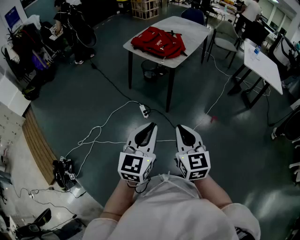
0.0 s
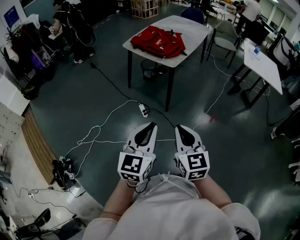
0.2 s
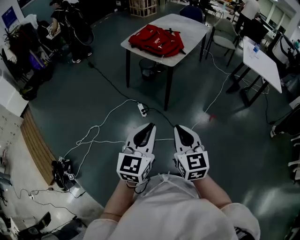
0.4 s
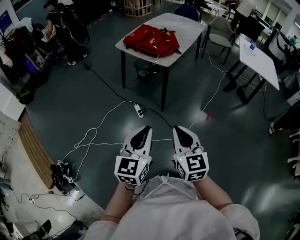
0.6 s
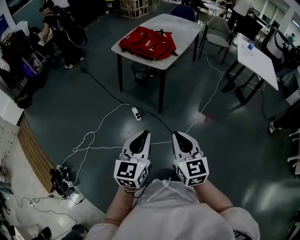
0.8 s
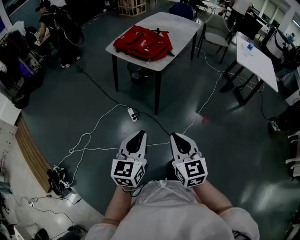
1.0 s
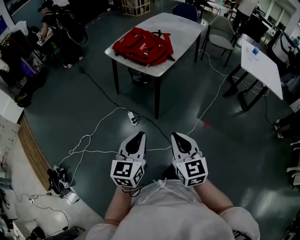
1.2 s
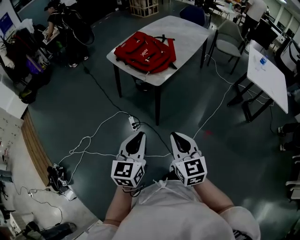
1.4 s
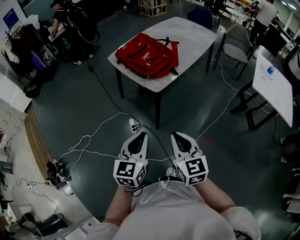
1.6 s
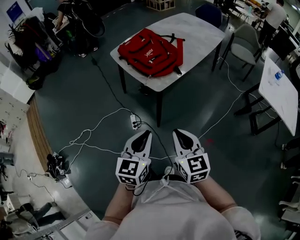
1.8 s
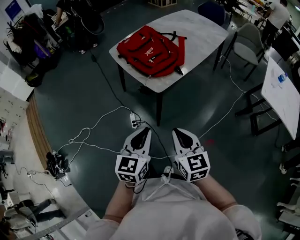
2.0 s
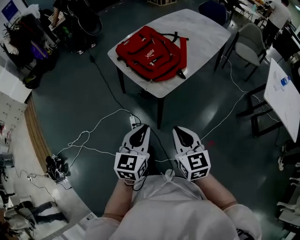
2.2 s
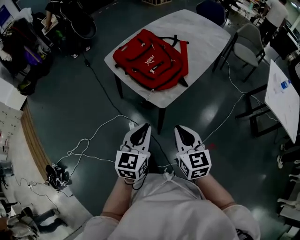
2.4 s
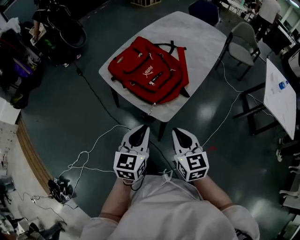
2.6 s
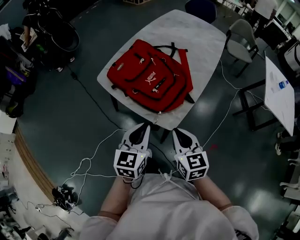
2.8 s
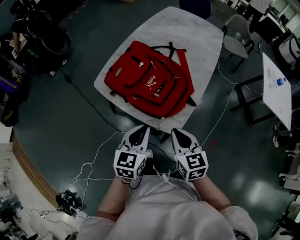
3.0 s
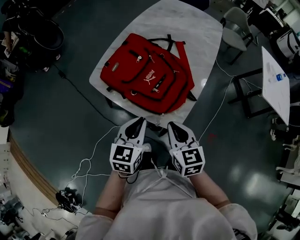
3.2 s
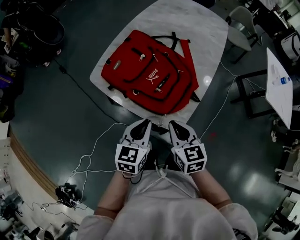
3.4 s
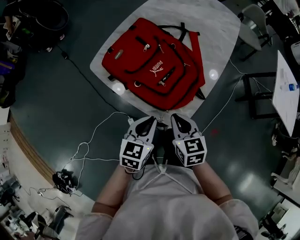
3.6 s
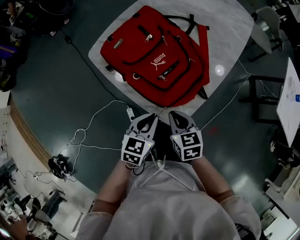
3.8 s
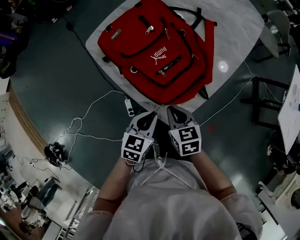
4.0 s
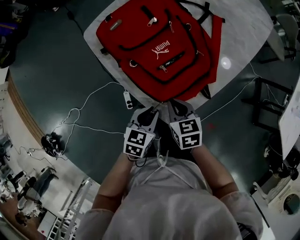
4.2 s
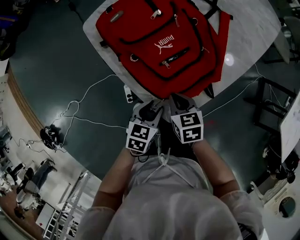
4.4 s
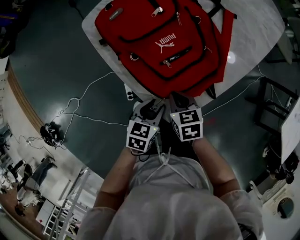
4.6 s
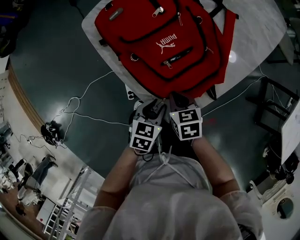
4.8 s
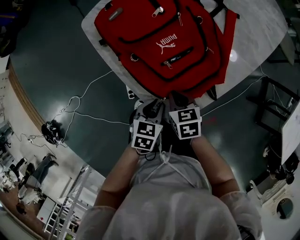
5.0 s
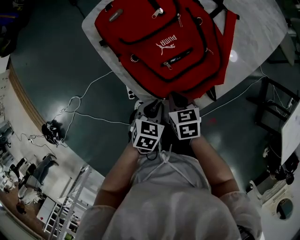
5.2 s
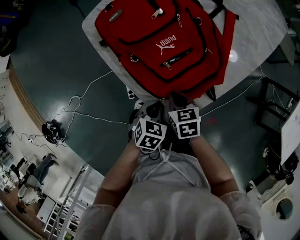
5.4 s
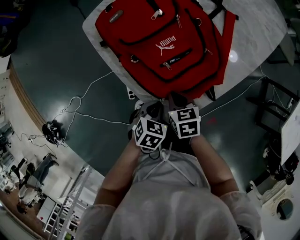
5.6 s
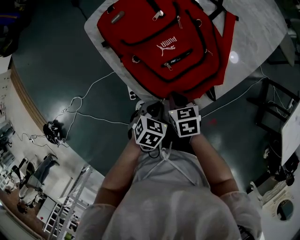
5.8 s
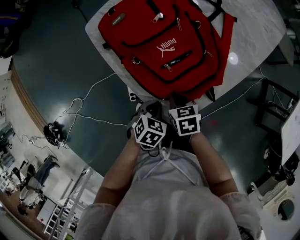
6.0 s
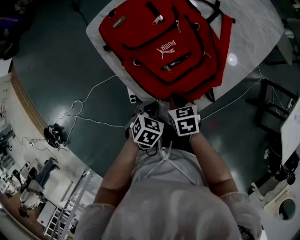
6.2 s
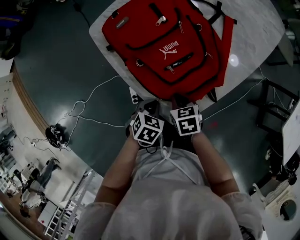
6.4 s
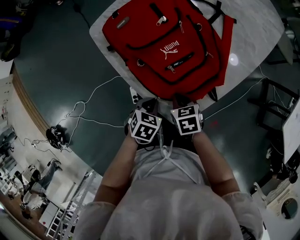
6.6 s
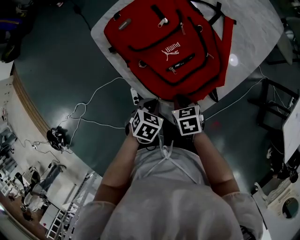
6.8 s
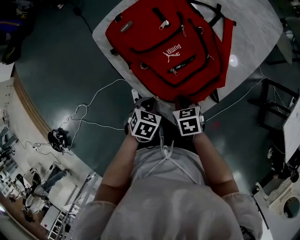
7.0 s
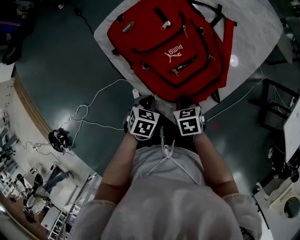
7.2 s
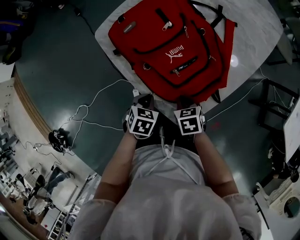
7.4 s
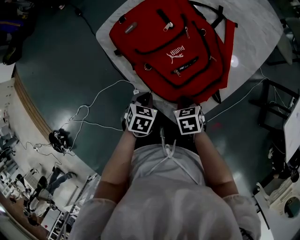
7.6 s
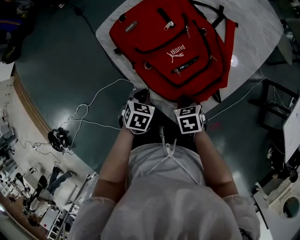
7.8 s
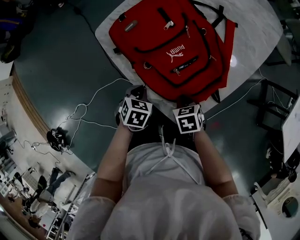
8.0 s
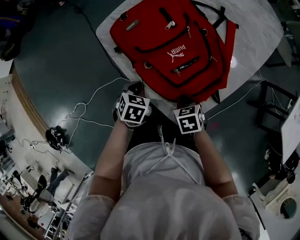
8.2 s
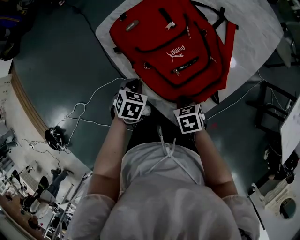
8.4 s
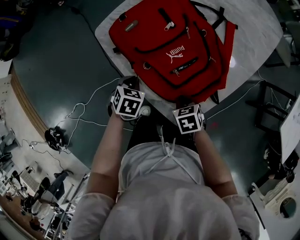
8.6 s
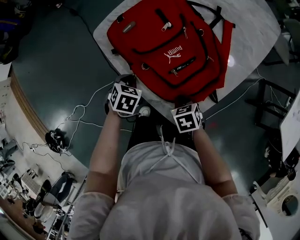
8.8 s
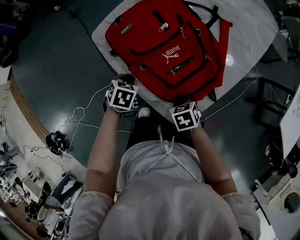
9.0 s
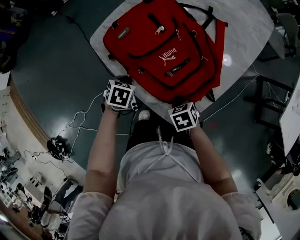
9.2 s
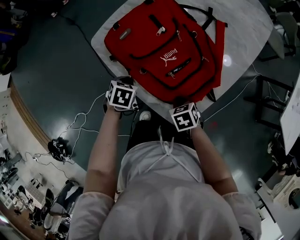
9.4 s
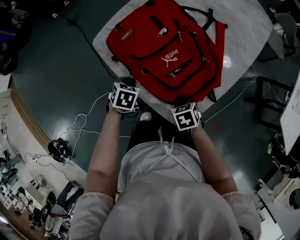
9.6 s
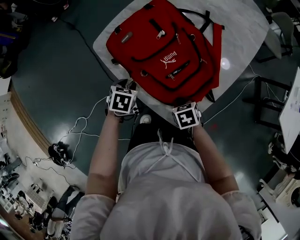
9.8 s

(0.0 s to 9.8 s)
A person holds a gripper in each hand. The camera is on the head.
0.0 s - 1.4 s: The grippers both shift forward and to the right by about 25 cm.
1.4 s - 2.8 s: The two grippers go roughly 40 cm forward.
2.8 s - 4.2 s: The right gripper shifts roughly 20 cm downward and forward, and changes its angle by approximately 30 degrees; the left gripper goes about 20 cm downward, and rotates approximately 30 degrees.
4.2 s - 5.6 s: The right gripper moves downward, roughly 5 cm, while the left gripper moves about 5 cm, turns by about 20 degrees, and opens, then closes again.
5.6 s - 7.0 s: The left gripper moves to the left, approximately 5 cm.
7.0 s - 8.4 s: The left gripper moves forward and to the left, approximately 10 cm.
8.4 s - 9.8 s: The left gripper opens its fingers.

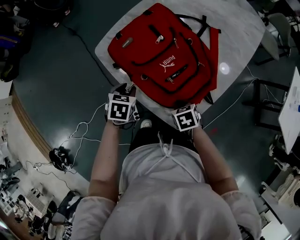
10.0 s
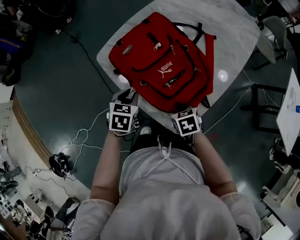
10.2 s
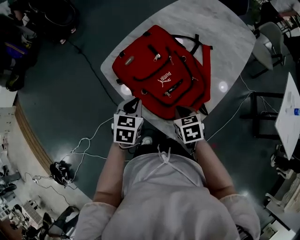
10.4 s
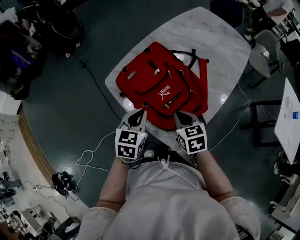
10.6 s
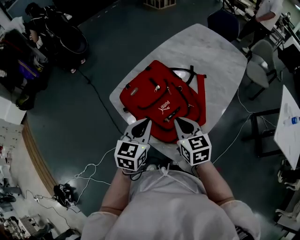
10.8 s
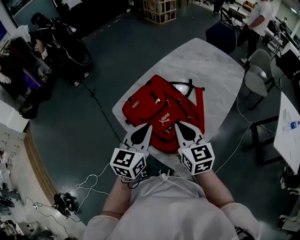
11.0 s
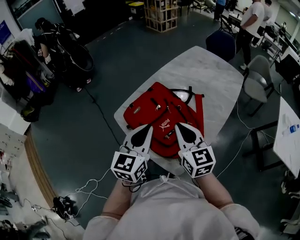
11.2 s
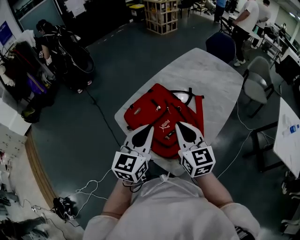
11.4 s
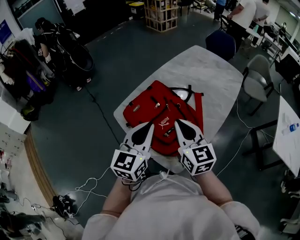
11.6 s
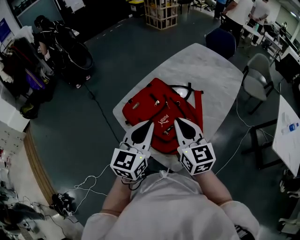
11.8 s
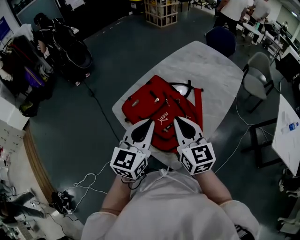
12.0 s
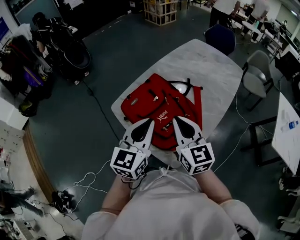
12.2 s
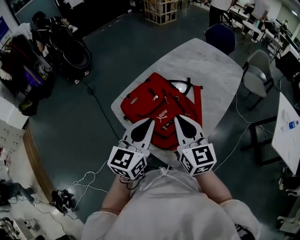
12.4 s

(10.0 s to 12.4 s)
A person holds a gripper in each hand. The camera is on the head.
10.0 s - 11.2 s: Both grippers travel together upward, approximately 35 cm. The left gripper angles its fingers upward, by some 50 degrees, and closes up. Meanwhile the right gripper angles its fingers upward, by roughly 60 degrees.
11.2 s - 12.4 s: There are only small adjustments of the grippers.

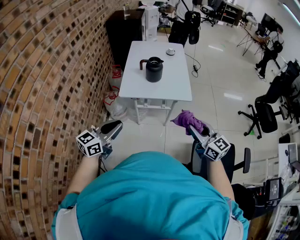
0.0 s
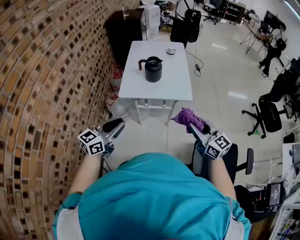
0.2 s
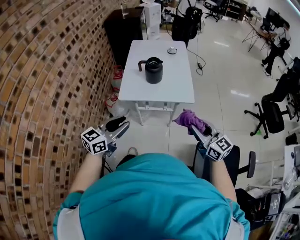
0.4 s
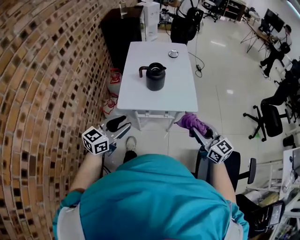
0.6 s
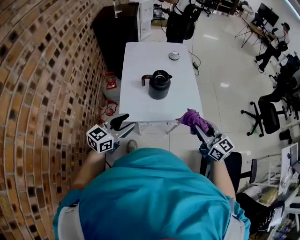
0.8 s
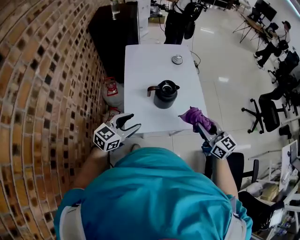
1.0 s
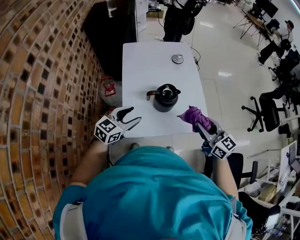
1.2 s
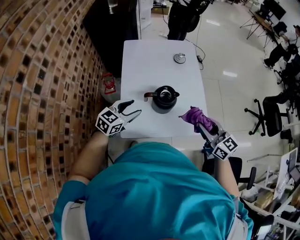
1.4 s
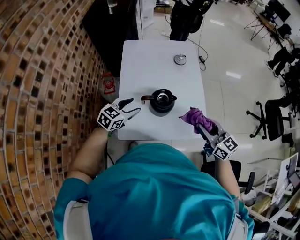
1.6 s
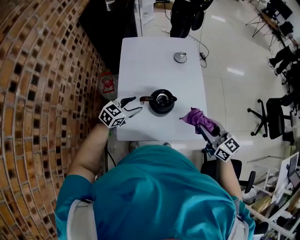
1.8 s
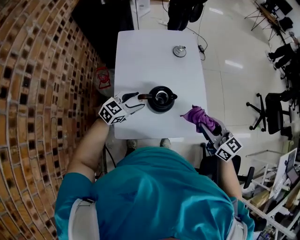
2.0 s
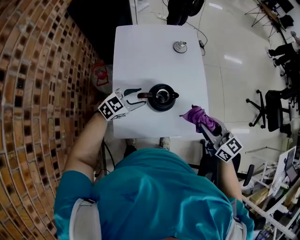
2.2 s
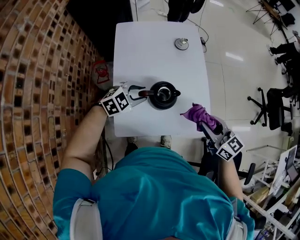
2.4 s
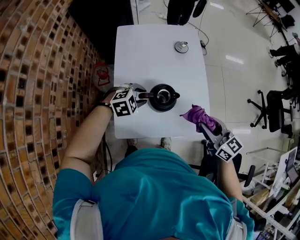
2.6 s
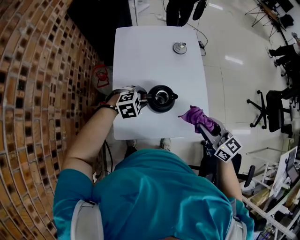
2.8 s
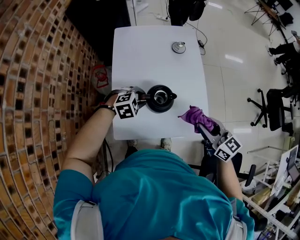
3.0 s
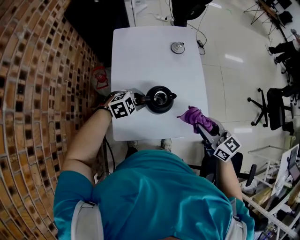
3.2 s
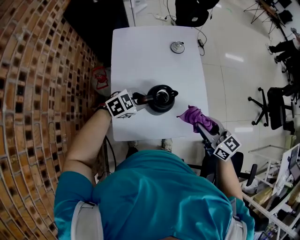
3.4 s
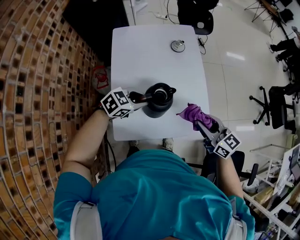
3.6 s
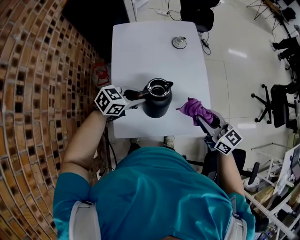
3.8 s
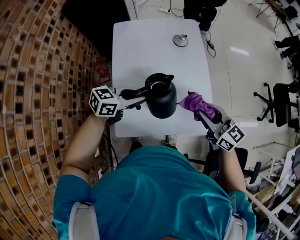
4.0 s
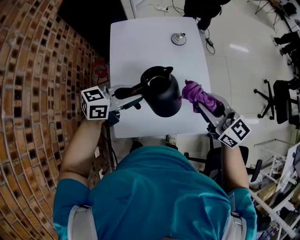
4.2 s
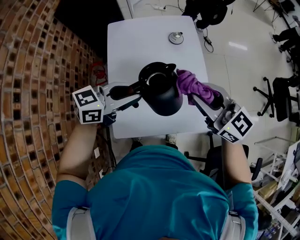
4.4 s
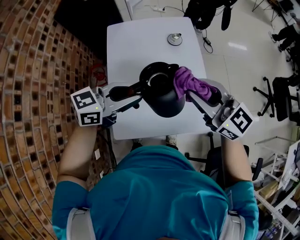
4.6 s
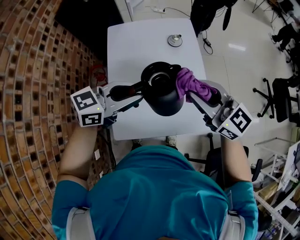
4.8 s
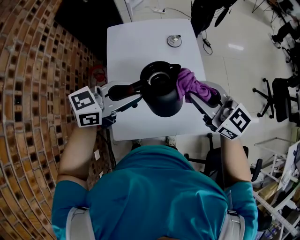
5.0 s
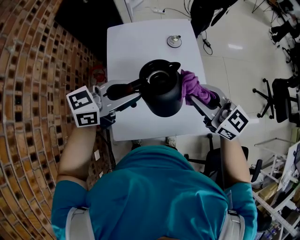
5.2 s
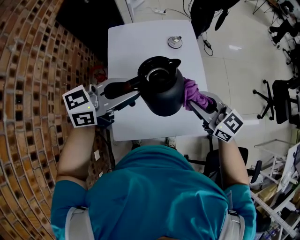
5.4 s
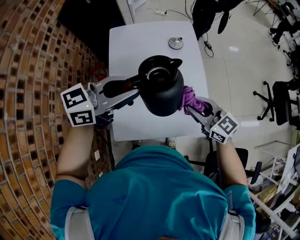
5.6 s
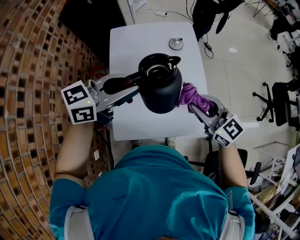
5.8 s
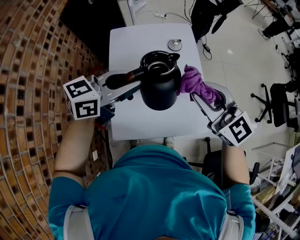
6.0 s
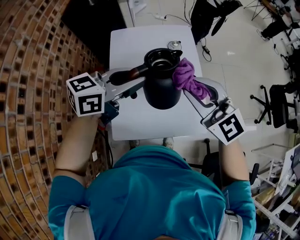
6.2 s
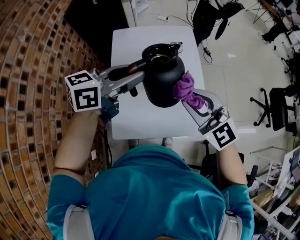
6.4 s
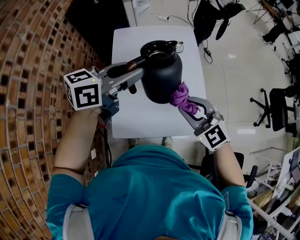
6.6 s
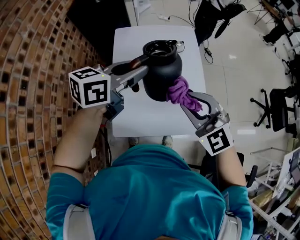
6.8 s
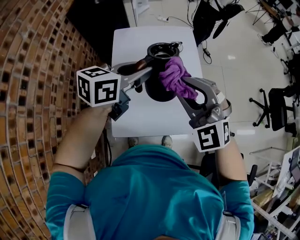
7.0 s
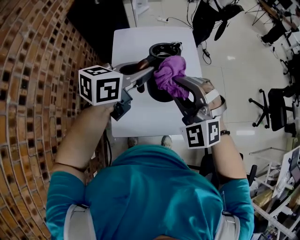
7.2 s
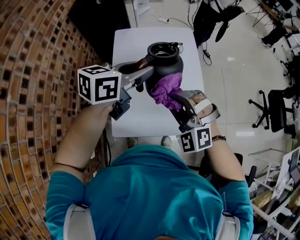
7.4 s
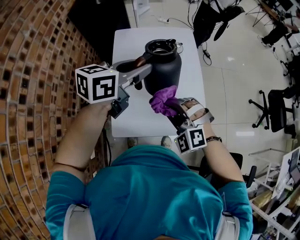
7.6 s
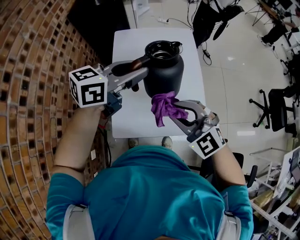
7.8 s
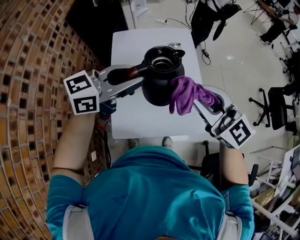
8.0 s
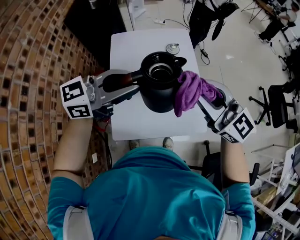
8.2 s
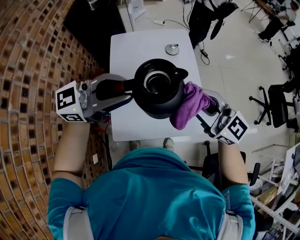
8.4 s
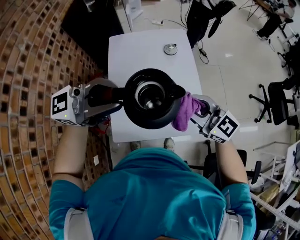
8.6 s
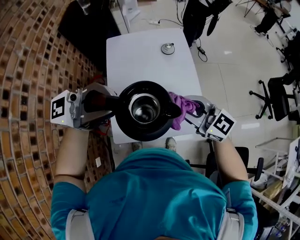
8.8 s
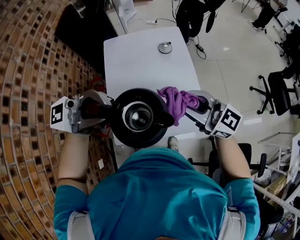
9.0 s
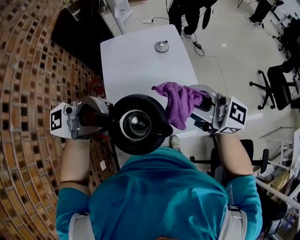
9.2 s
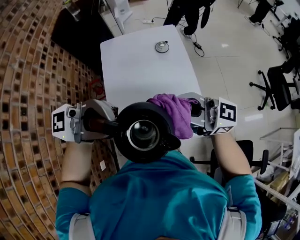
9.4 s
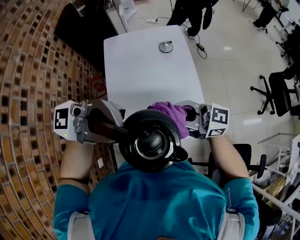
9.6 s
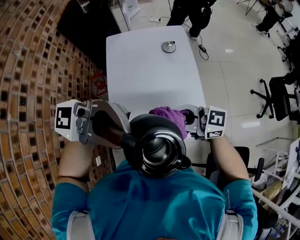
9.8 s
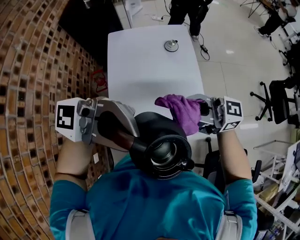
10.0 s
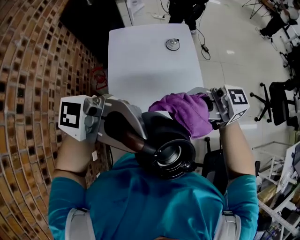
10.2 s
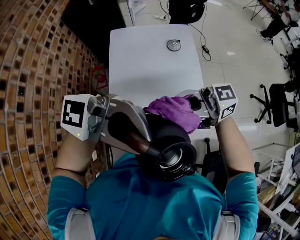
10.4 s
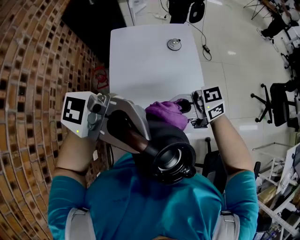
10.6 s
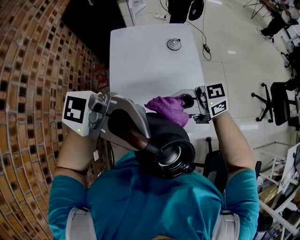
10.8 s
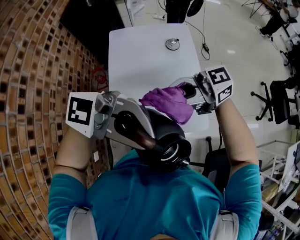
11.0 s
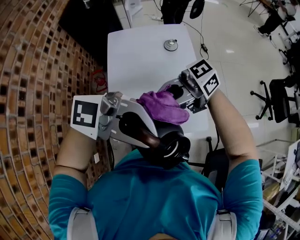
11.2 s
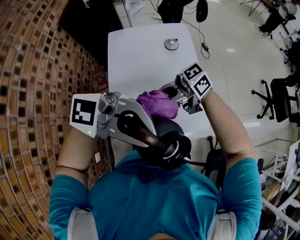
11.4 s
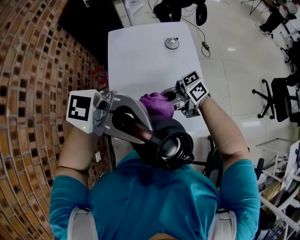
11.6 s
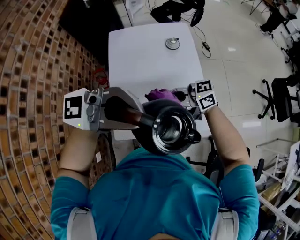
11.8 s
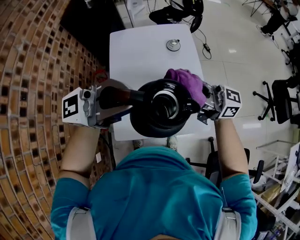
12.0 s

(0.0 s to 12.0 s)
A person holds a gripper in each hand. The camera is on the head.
0.0 s - 1.6 s: The grippers both shift forward by approximately 40 cm. The left gripper turns by approximately 30 degrees, and opens up.
1.6 s - 3.0 s: The left gripper shifts approximately 10 cm downward and to the right, changes its angle by some 50 degrees, and closes up.
3.0 s - 4.4 s: The left gripper travels upward by about 20 cm, and tips its fingers upward by some 50 degrees; the right gripper travels upward, to the left and forward by approximately 15 cm.
4.4 s - 6.0 s: The left gripper is displaced upward by roughly 10 cm. Meanwhile the right gripper goes downward and returns, about 10 cm each way.
6.0 s - 7.6 s: The right gripper swings up and down, roughly 15 cm each way, with 2 reversals, and twists some 50 degrees counterclockwise, seen from behind.
7.6 s - 9.0 s: The left gripper moves some 20 cm, and angles its fingers upward, by some 40 degrees; the right gripper swings up and down, about 20 cm each way, with 2 reversals, and angles its fingers upward, by some 40 degrees.
9.0 s - 10.4 s: The left gripper moves roughly 10 cm, and changes its angle by approximately 20 degrees. The right gripper swings up and down, roughly 15 cm each way, with 3 reversals, and swivels roughly 50 degrees.
10.4 s - 12.0 s: The left gripper ends up roughly 10 cm from where it was, and turns by roughly 30 degrees. Meanwhile the right gripper goes up and down, about 15 cm each way, reversing 3 times, and swivels approximately 30 degrees.
